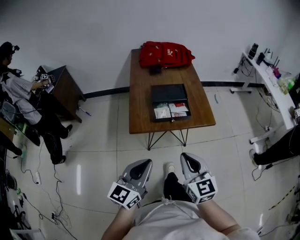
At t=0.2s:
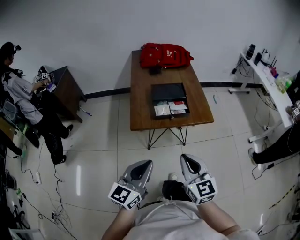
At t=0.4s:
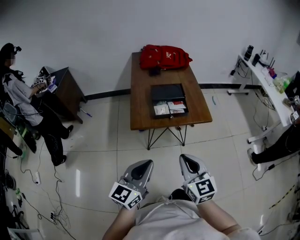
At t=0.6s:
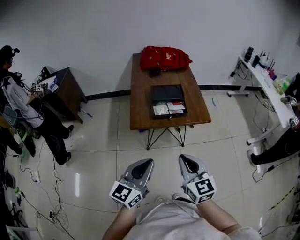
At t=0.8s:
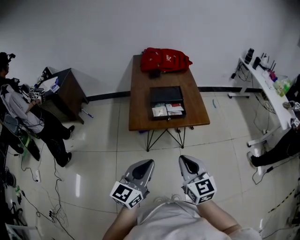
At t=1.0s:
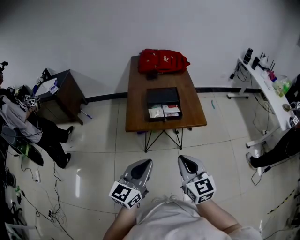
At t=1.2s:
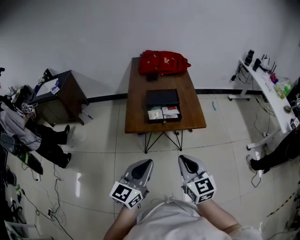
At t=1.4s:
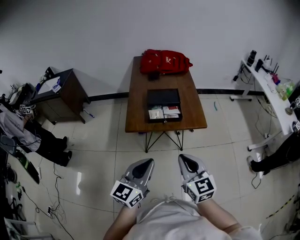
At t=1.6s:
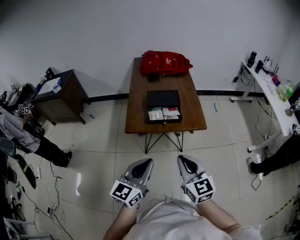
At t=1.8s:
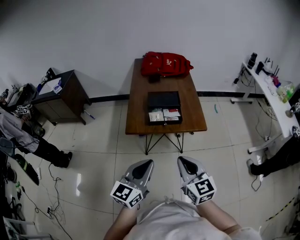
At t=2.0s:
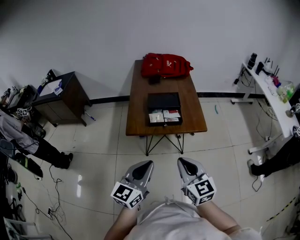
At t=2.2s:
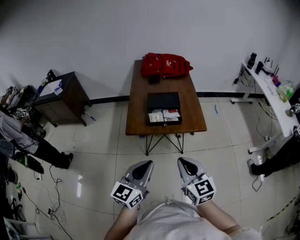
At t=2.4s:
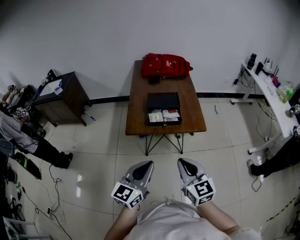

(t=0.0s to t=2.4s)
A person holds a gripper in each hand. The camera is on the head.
t=0.0s - t=1.2s: Both grippers travel together to the right, approximately 5 cm.
t=1.2s - t=2.4s: Both grippers stay put.

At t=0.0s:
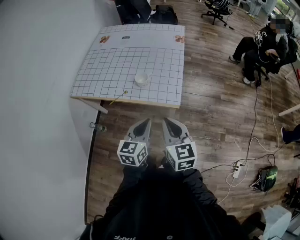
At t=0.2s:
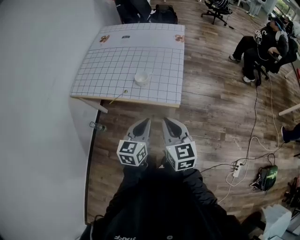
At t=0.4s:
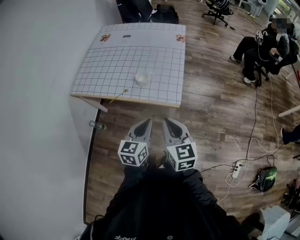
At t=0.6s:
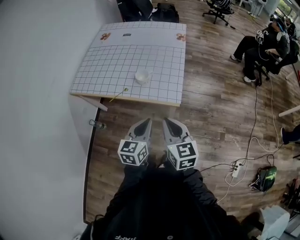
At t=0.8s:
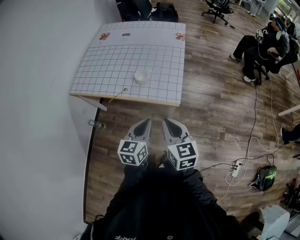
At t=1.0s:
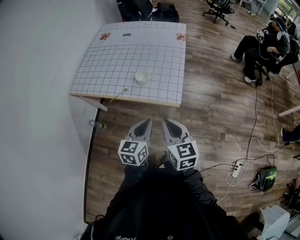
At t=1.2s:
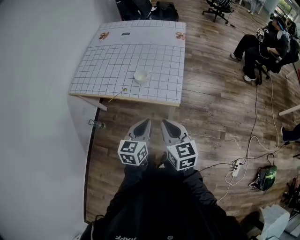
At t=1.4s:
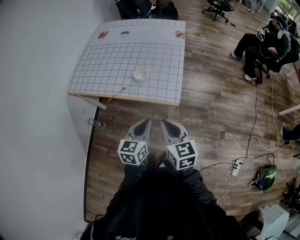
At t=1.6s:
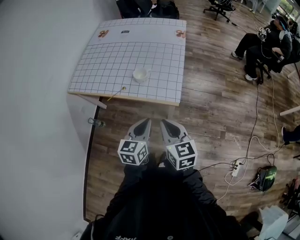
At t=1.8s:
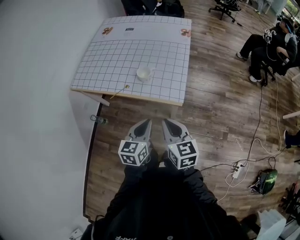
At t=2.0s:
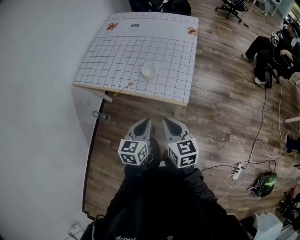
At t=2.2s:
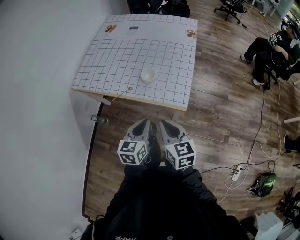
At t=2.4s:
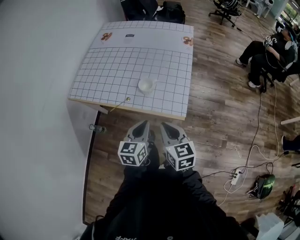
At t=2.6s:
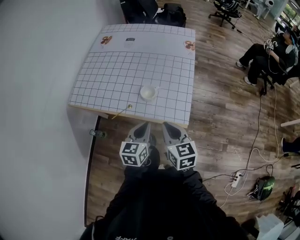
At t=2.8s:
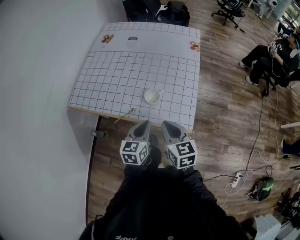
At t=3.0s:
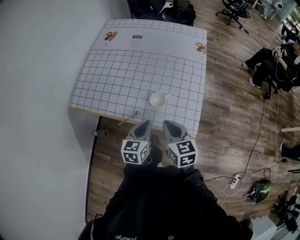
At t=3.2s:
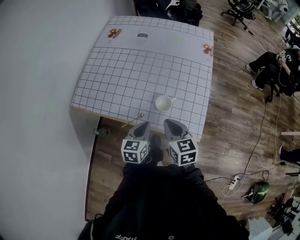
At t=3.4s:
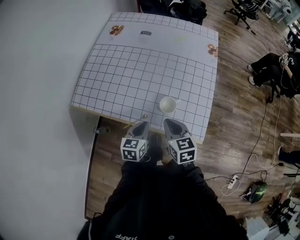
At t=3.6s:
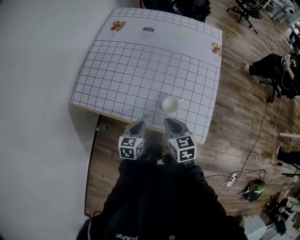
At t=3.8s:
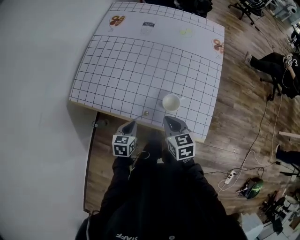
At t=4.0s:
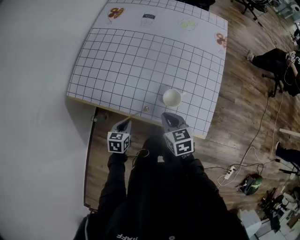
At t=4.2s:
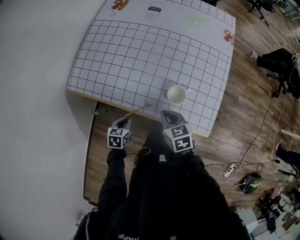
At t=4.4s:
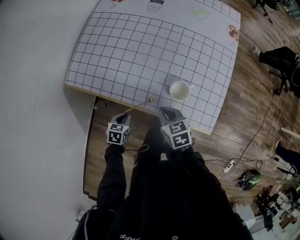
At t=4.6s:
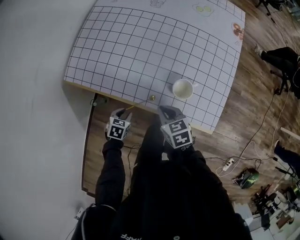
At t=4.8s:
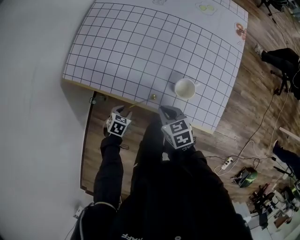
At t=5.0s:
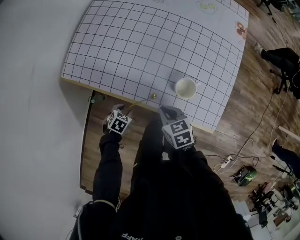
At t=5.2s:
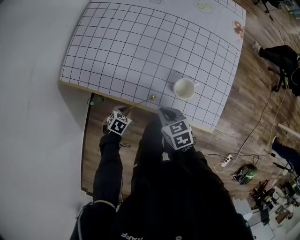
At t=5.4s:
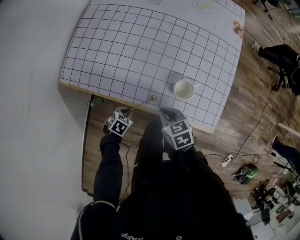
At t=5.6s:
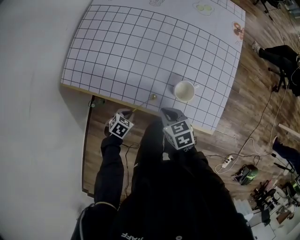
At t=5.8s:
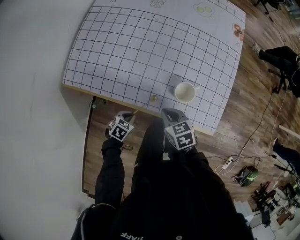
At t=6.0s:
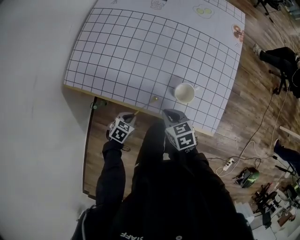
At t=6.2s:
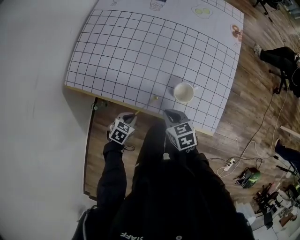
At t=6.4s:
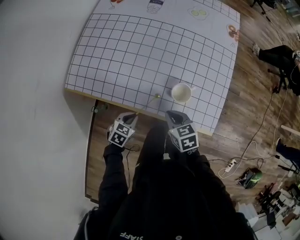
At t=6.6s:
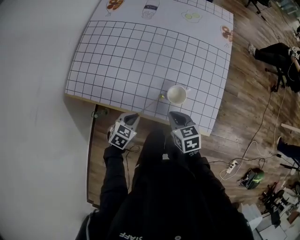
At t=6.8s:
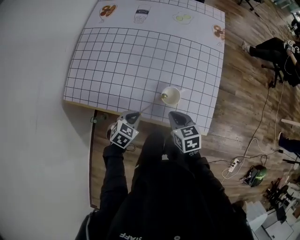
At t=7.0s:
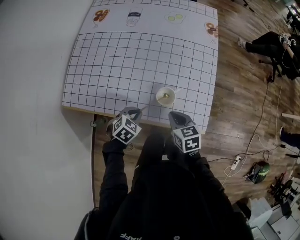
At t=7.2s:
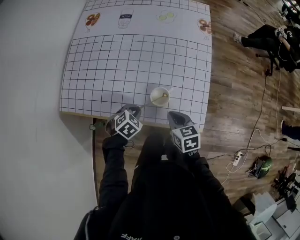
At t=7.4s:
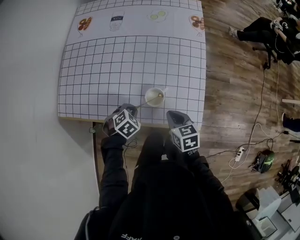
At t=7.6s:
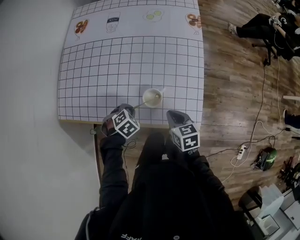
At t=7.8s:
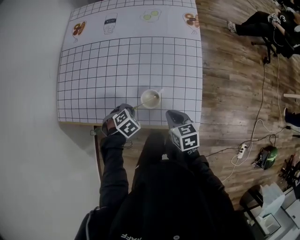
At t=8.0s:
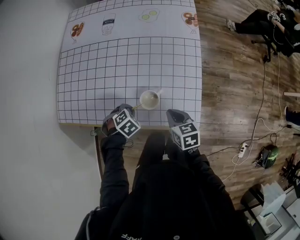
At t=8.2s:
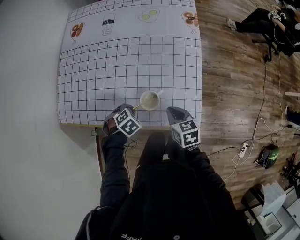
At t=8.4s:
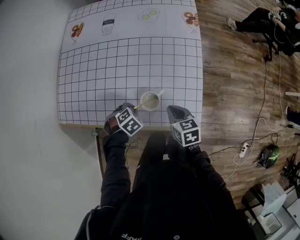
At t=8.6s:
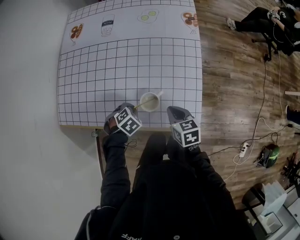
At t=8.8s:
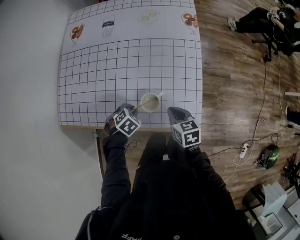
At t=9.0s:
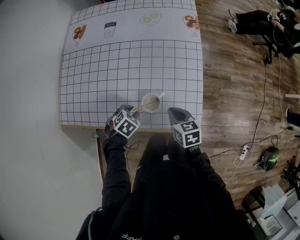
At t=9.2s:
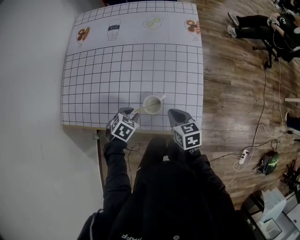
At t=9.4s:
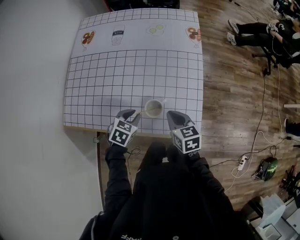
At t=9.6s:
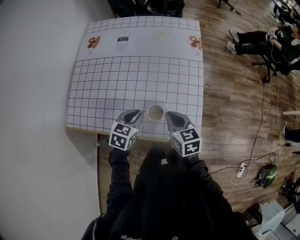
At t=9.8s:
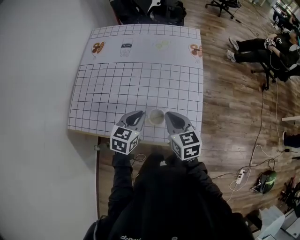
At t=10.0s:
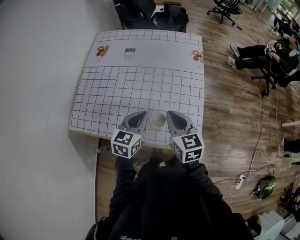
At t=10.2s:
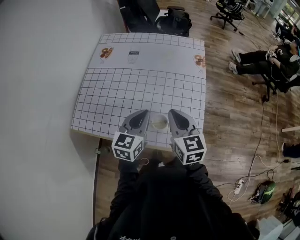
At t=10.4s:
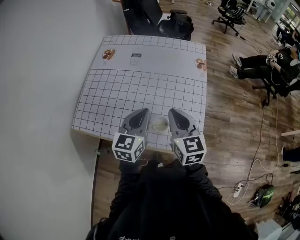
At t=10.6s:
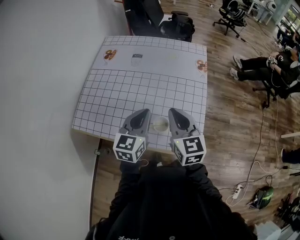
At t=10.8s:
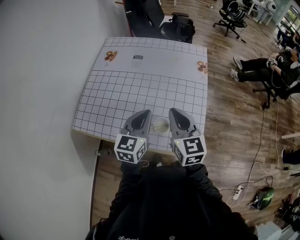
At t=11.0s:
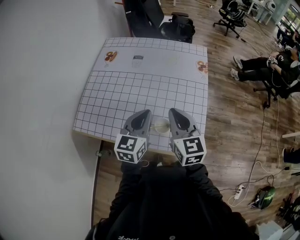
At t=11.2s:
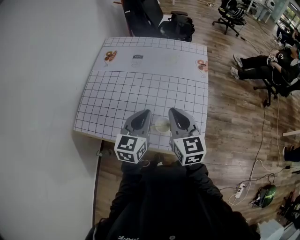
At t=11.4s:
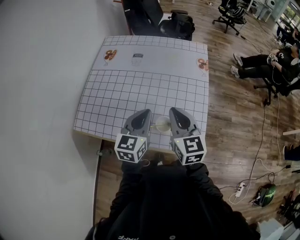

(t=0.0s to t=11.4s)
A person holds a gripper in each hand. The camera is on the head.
t=0.0s - t=1.4s: The grippers make only small movements.
t=1.4s - t=2.8s: The two grippers go approximately 20 cm forward.
t=2.8s - t=4.2s: The right gripper shifts approximately 25 cm downward, forward and to the left, and turns by some 20 degrees, while the left gripper moves to the left and downward, some 30 cm, and tips its fingers downward by roughly 30 degrees.
t=4.2s - t=5.6s: The left gripper travels downward by about 10 cm, swivels about 30 degrees, and opens, then closes once more; the right gripper moves downward, some 5 cm.
t=5.6s - t=7.2s: The left gripper heads upward, to the right and forward, covering about 20 cm, and changes its angle by some 30 degrees. Meanwhile the right gripper heads to the right and upward, covering about 15 cm.
t=7.2s - t=8.6s: The right gripper changes place by roughly 5 cm. The left gripper shifts by about 5 cm.
t=8.6s - t=10.0s: The grippers both shift upward by approximately 20 cm. The left gripper angles its fingers upward, by roughly 50 degrees, while the right gripper changes its angle by some 30 degrees.
t=10.0s - t=11.4s: Both grippers move upward, roughly 5 cm.

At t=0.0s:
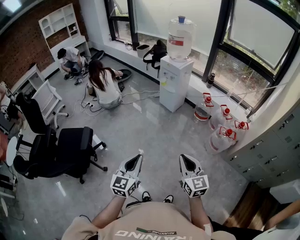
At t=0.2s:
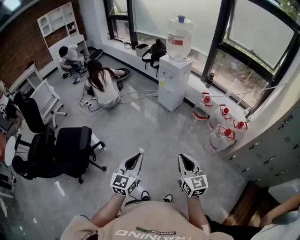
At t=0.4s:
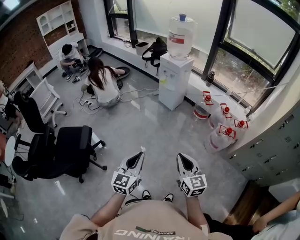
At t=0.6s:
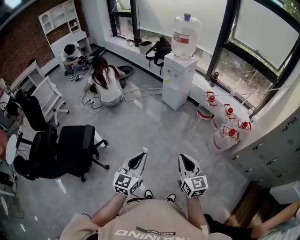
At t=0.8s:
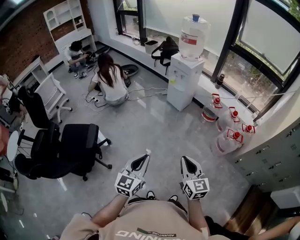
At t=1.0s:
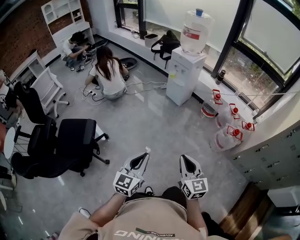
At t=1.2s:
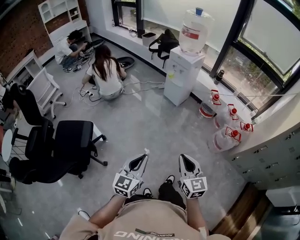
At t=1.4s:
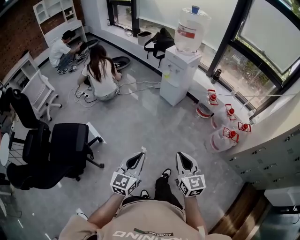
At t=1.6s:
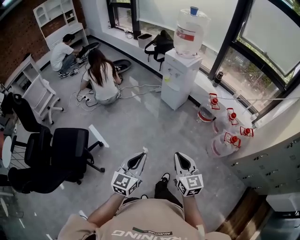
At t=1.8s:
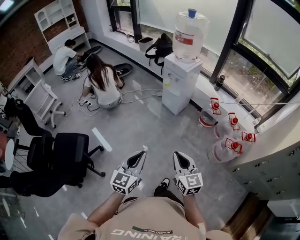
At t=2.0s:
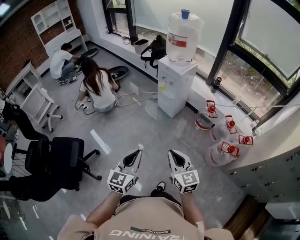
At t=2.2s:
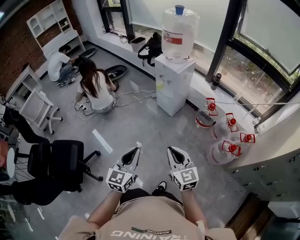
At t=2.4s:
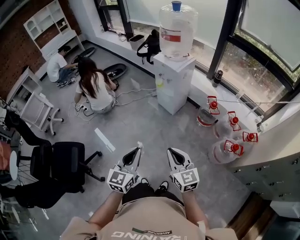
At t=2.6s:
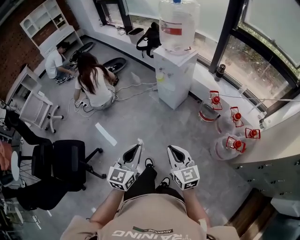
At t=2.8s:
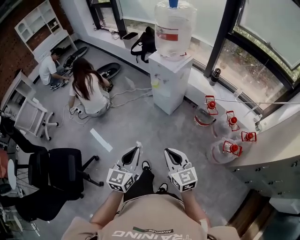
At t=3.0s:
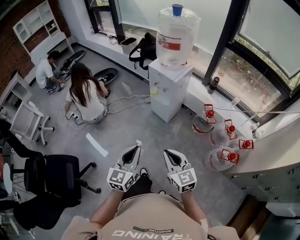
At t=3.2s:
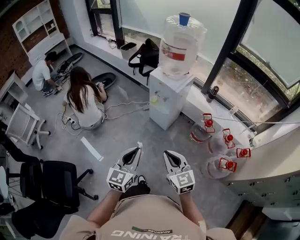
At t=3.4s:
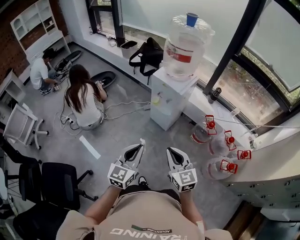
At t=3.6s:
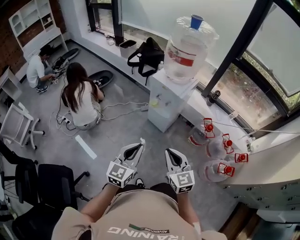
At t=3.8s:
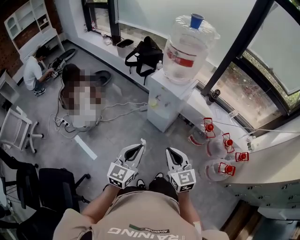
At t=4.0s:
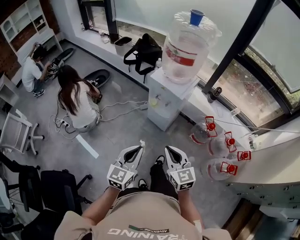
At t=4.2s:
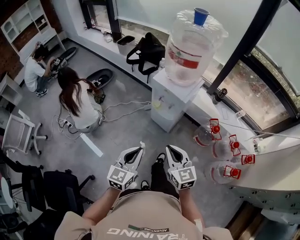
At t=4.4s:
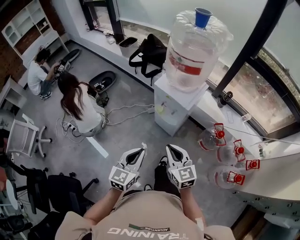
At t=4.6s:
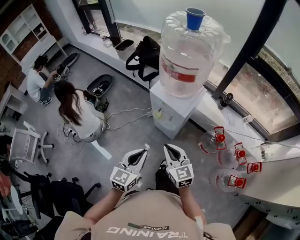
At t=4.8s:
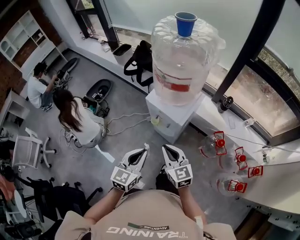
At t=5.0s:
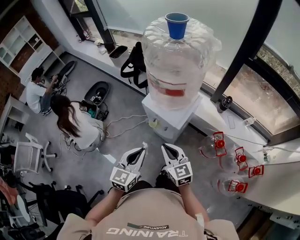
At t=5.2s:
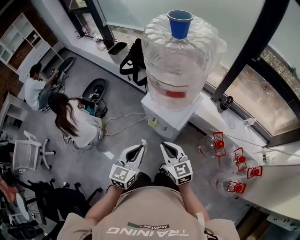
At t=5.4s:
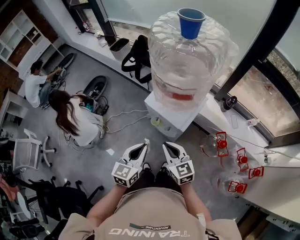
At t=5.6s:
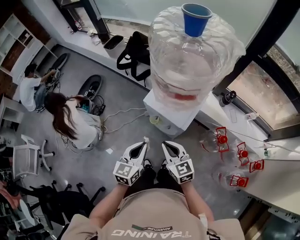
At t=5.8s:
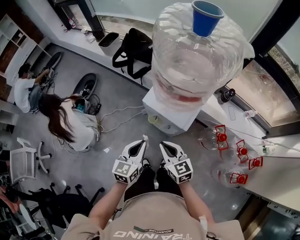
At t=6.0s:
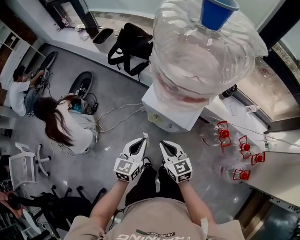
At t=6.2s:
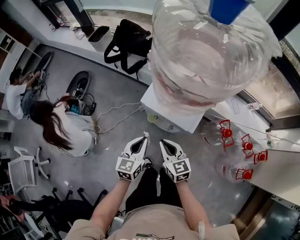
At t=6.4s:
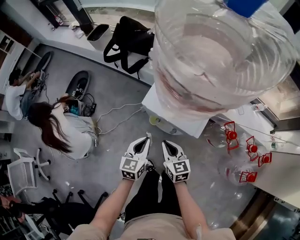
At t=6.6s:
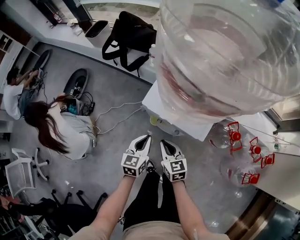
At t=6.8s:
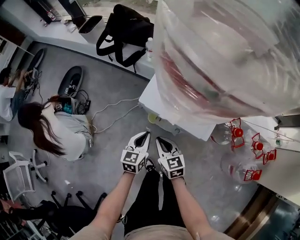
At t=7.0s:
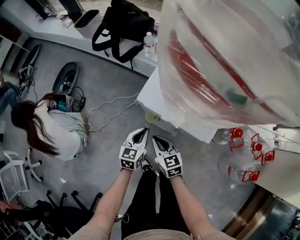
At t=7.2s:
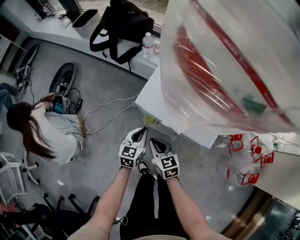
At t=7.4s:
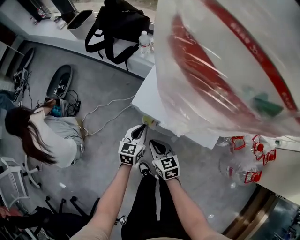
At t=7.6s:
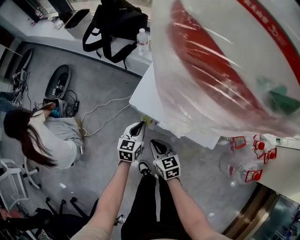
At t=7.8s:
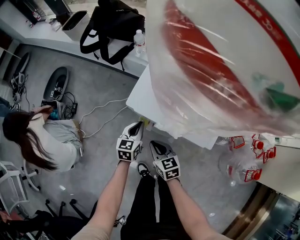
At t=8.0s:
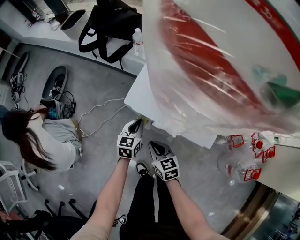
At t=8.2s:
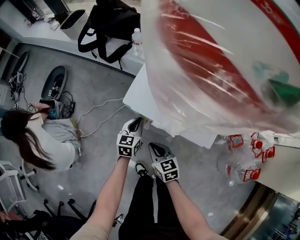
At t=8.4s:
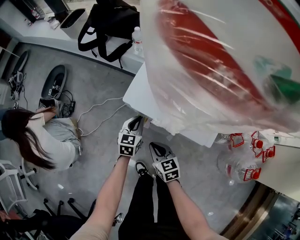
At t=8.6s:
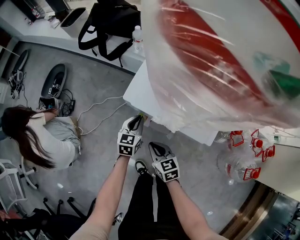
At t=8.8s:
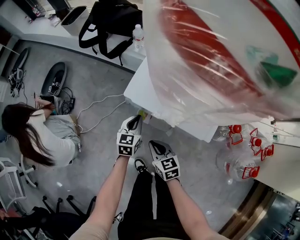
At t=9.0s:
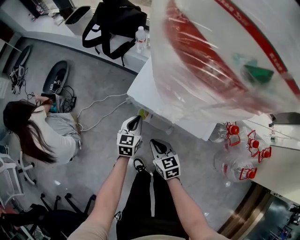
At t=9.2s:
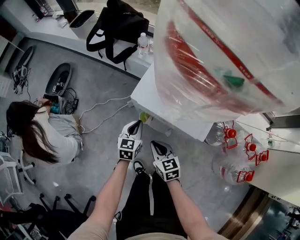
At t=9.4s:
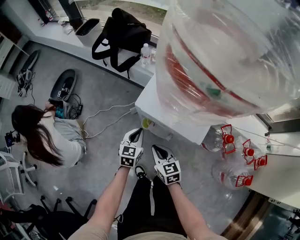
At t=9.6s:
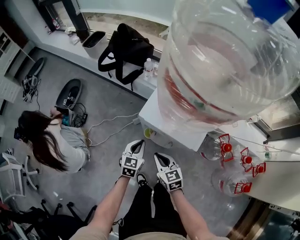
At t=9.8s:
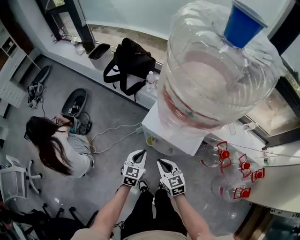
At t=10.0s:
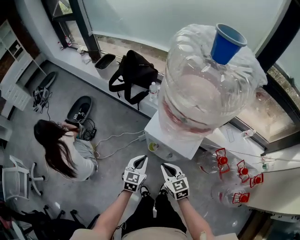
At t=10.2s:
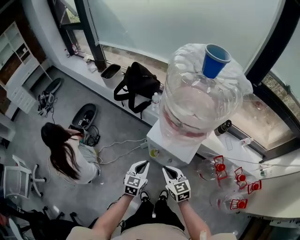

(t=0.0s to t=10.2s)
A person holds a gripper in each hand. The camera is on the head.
t=0.0s - t=1.4s: The left gripper goes roughly 10 cm forward, while the right gripper is displaced forward and to the left by about 15 cm.
t=1.4s - t=3.0s: The grippers both shift forward by about 35 cm.
t=3.0s - t=4.4s: The grippers both shift forward by approximately 30 cm.
t=4.4s - t=5.8s: The two grippers go about 20 cm forward.
t=5.8s - t=7.2s: The left gripper shifts about 35 cm downward and forward; the right gripper shifts some 30 cm downward.
t=7.2s - t=8.8s: The left gripper shifts by approximately 5 cm. The right gripper ends up about 5 cm from where it was.
t=8.8s - t=10.2s: Both grippers move upward, roughly 30 cm.
